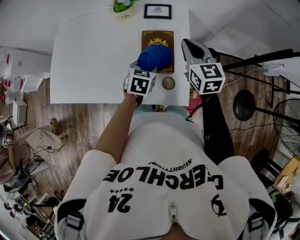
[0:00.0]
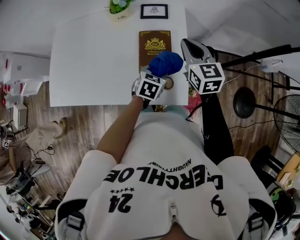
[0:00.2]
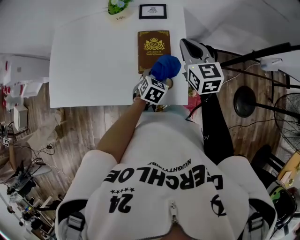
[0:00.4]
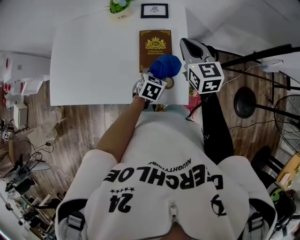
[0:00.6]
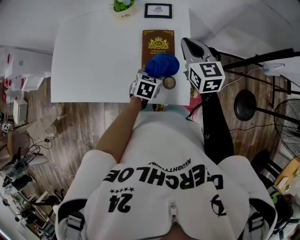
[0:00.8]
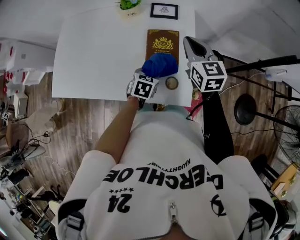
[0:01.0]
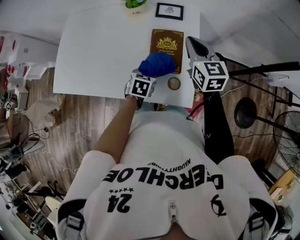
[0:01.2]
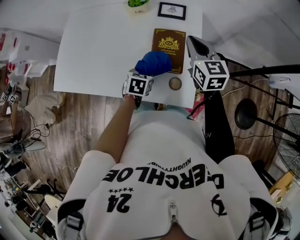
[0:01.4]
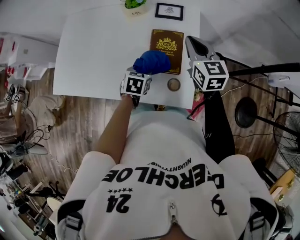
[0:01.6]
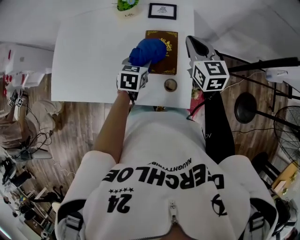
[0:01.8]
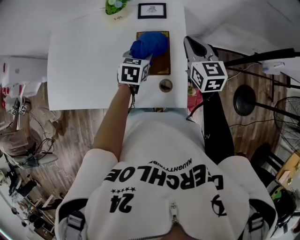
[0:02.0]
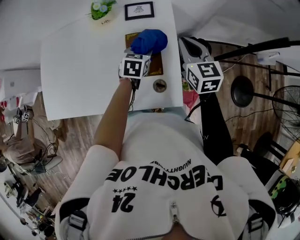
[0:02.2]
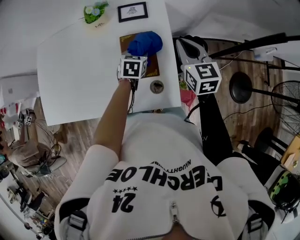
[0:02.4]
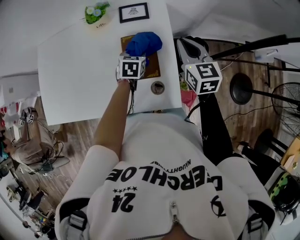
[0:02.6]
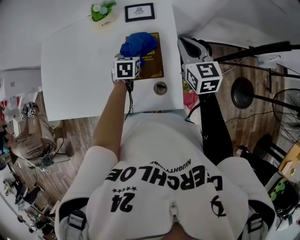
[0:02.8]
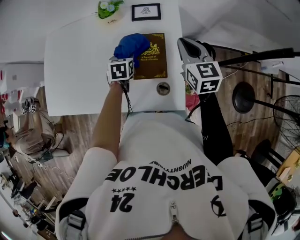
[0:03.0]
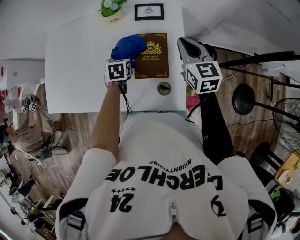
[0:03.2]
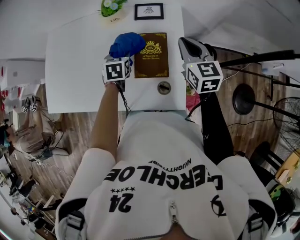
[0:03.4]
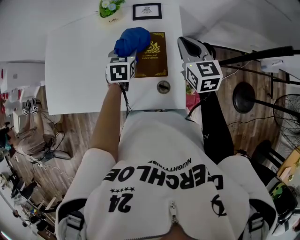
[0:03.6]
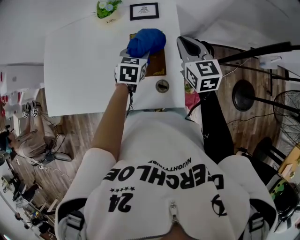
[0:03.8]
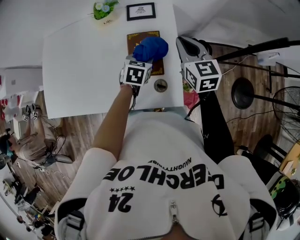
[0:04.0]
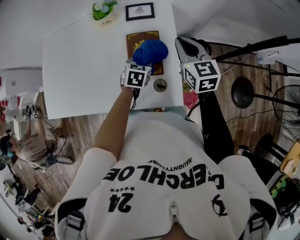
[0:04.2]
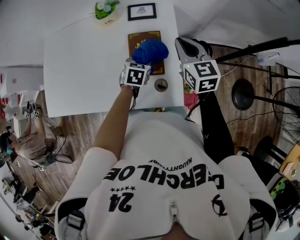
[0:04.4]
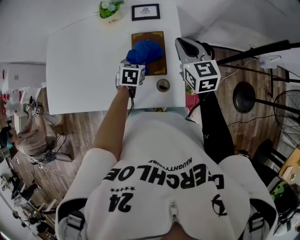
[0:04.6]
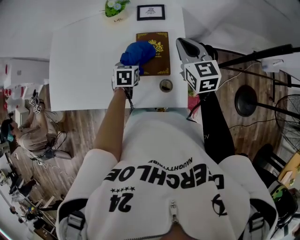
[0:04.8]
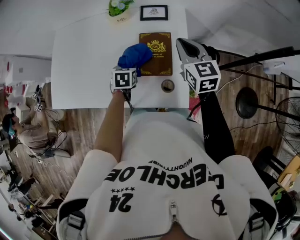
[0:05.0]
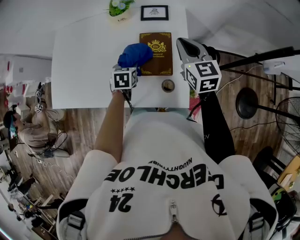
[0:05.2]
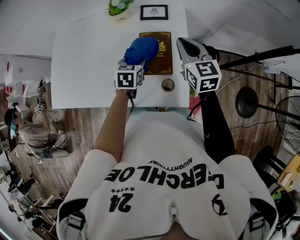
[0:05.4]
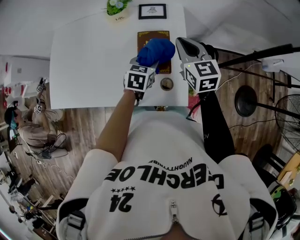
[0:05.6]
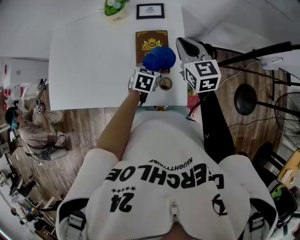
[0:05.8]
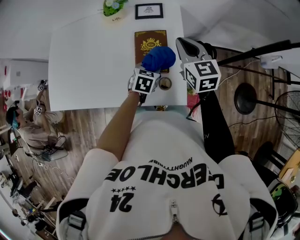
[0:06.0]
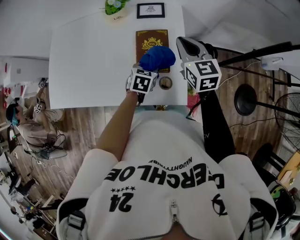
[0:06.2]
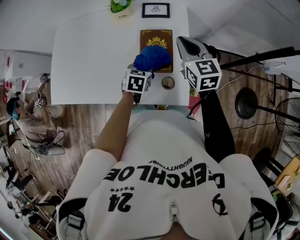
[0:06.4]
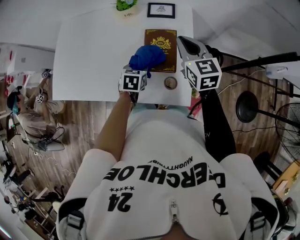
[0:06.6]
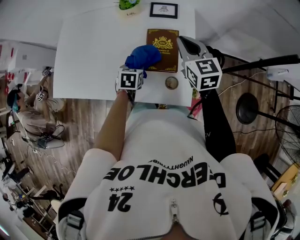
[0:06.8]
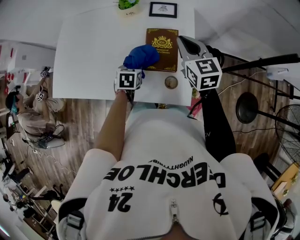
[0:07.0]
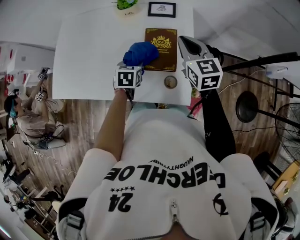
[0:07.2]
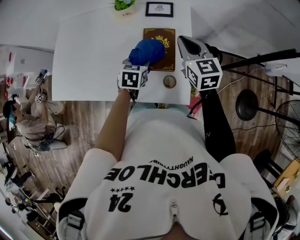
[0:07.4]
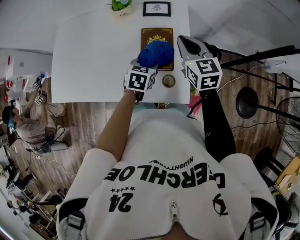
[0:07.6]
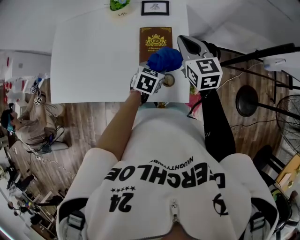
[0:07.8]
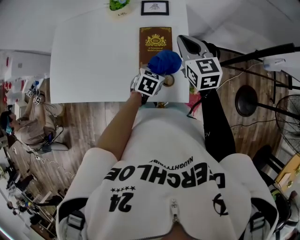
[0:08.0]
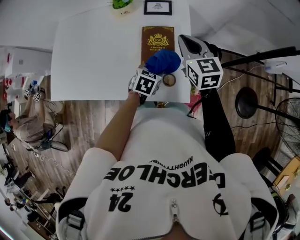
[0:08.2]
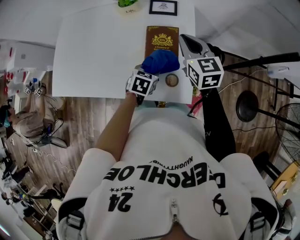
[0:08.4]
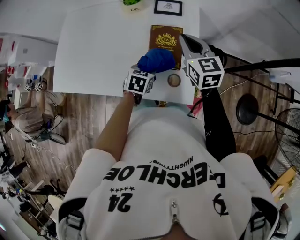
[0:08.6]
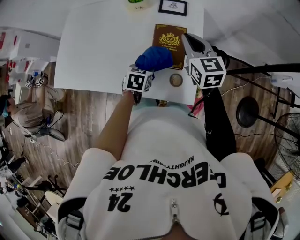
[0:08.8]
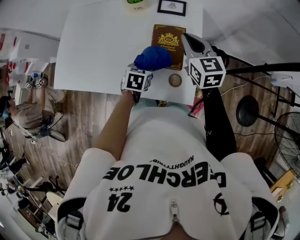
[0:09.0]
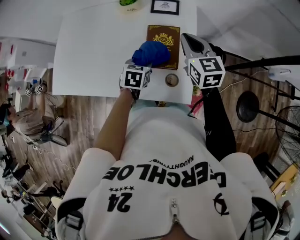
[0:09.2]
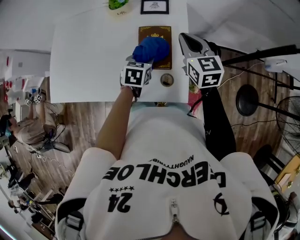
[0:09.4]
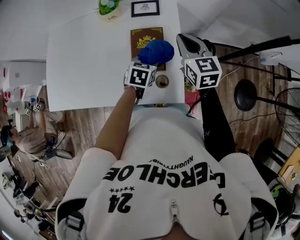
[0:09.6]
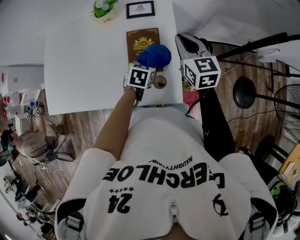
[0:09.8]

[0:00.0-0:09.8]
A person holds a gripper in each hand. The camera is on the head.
0:00.0 to 0:01.4: The left gripper is displaced to the left and downward by some 5 cm.
0:01.4 to 0:02.8: The right gripper goes some 5 cm to the right, while the left gripper shifts roughly 15 cm forward.
0:02.8 to 0:04.2: The left gripper goes approximately 10 cm backward and to the right.
0:04.2 to 0:05.6: The left gripper moves roughly 15 cm to the left and comes back.
0:05.6 to 0:07.0: The left gripper moves to the left and downward, roughly 15 cm.
0:07.0 to 0:08.4: The left gripper travels to the right by approximately 10 cm.
0:08.4 to 0:09.8: The right gripper shifts about 5 cm to the right; the left gripper shifts by roughly 5 cm.

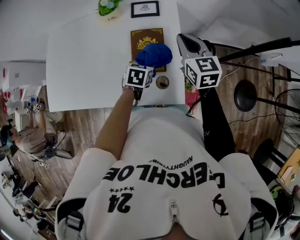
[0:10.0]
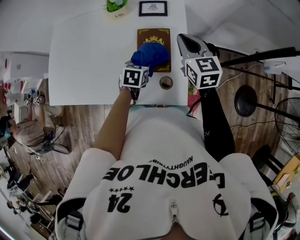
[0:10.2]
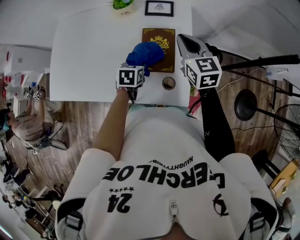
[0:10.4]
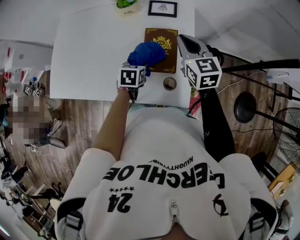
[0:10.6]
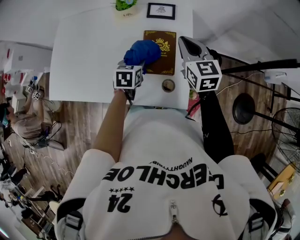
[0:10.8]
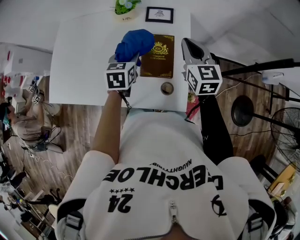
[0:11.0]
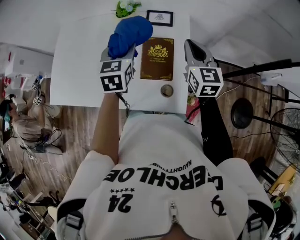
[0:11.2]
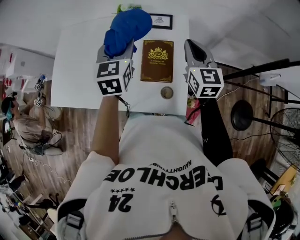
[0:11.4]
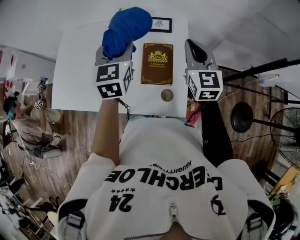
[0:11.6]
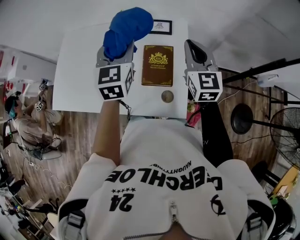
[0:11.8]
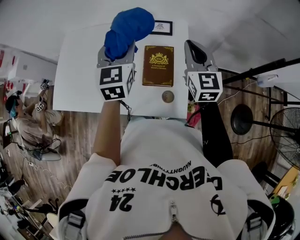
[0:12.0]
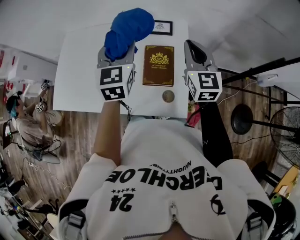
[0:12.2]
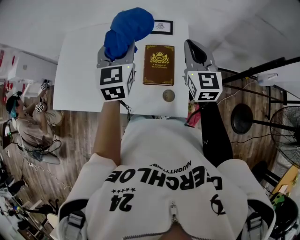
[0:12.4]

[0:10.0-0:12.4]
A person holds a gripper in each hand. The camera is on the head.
0:10.0 to 0:11.2: The left gripper is displaced upward and to the left by roughly 20 cm, and swivels approximately 30 degrees.
0:11.2 to 0:12.4: The right gripper shifts some 5 cm upward; the left gripper goes roughly 10 cm upward.

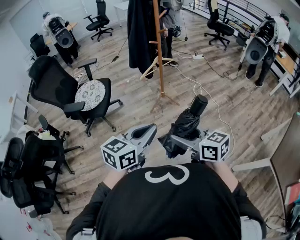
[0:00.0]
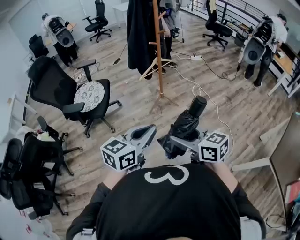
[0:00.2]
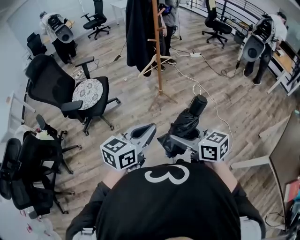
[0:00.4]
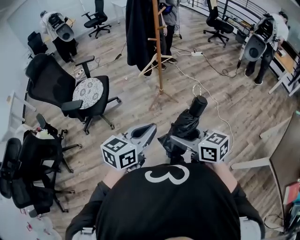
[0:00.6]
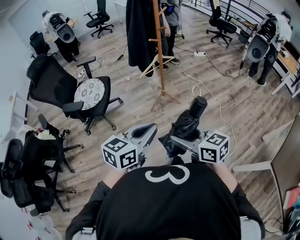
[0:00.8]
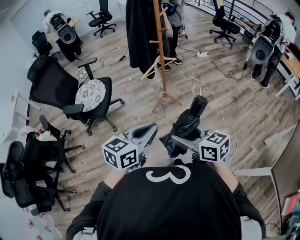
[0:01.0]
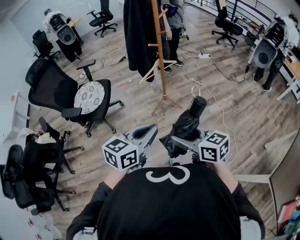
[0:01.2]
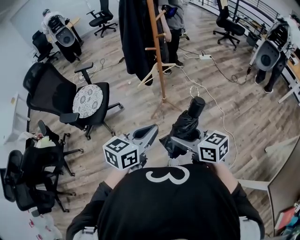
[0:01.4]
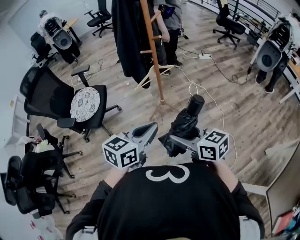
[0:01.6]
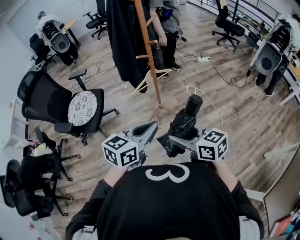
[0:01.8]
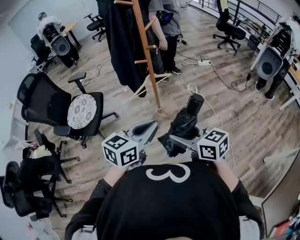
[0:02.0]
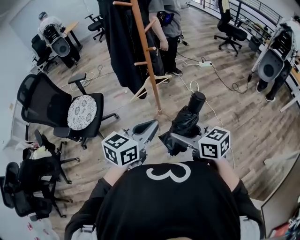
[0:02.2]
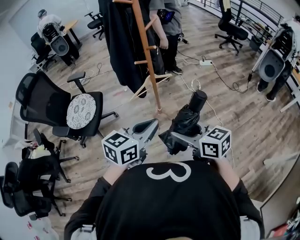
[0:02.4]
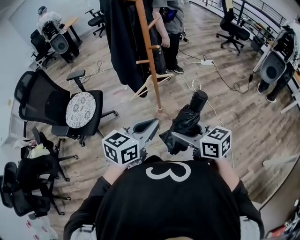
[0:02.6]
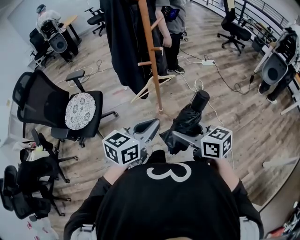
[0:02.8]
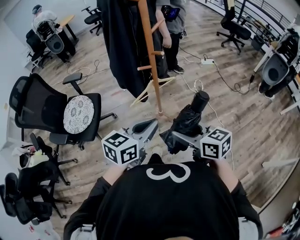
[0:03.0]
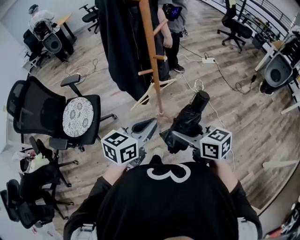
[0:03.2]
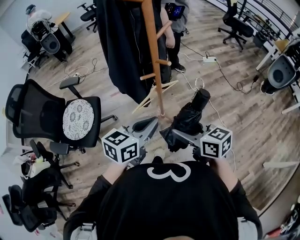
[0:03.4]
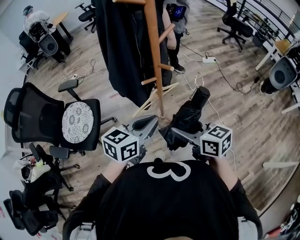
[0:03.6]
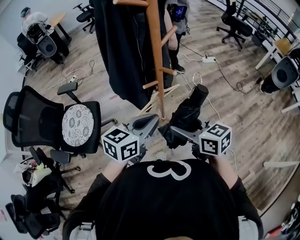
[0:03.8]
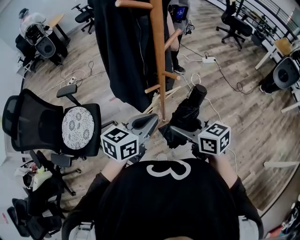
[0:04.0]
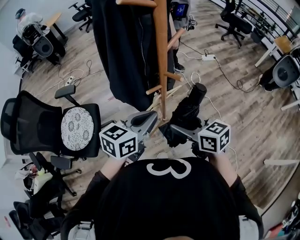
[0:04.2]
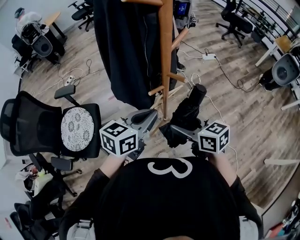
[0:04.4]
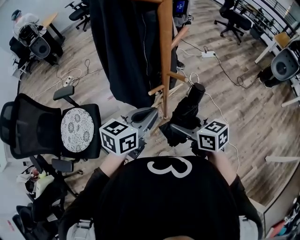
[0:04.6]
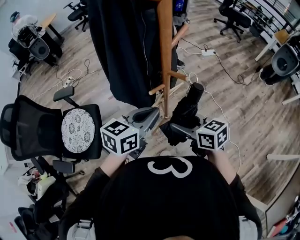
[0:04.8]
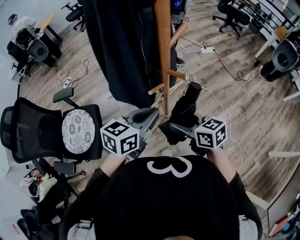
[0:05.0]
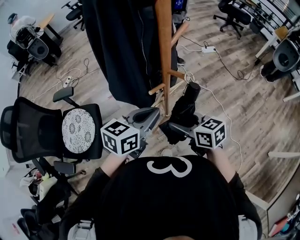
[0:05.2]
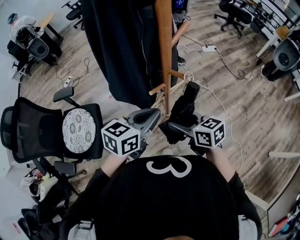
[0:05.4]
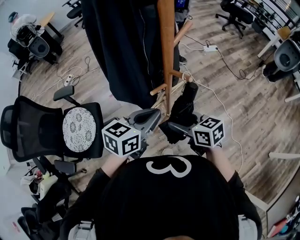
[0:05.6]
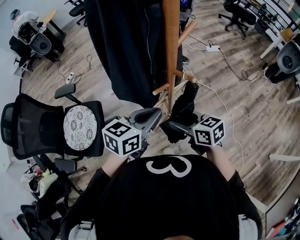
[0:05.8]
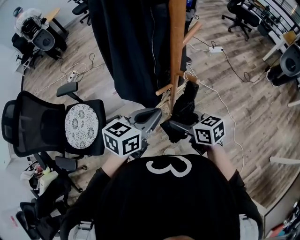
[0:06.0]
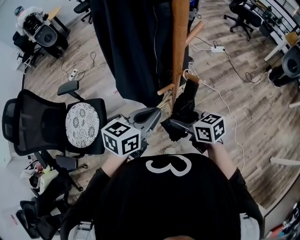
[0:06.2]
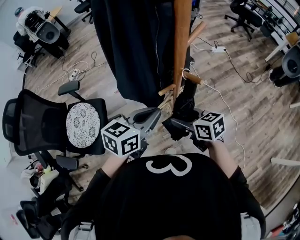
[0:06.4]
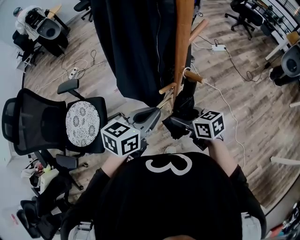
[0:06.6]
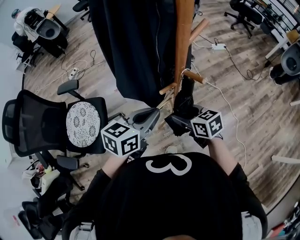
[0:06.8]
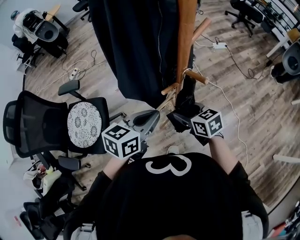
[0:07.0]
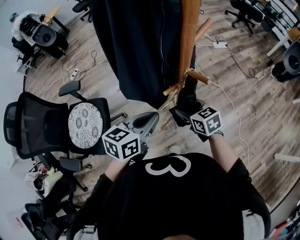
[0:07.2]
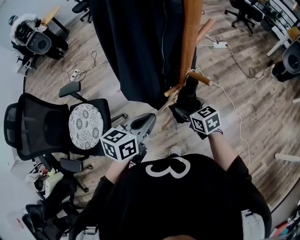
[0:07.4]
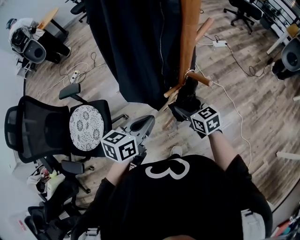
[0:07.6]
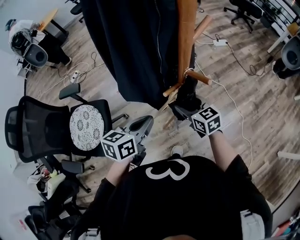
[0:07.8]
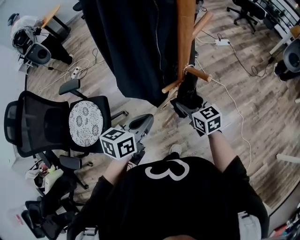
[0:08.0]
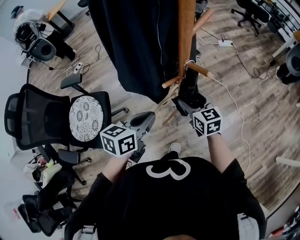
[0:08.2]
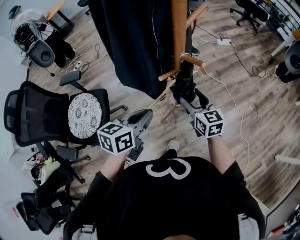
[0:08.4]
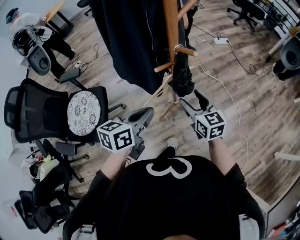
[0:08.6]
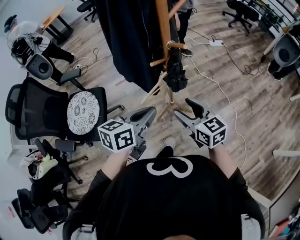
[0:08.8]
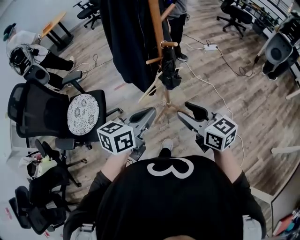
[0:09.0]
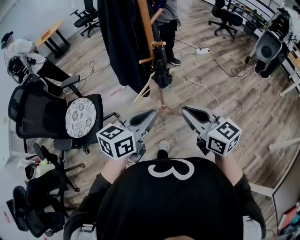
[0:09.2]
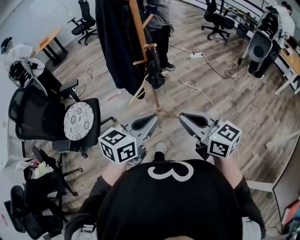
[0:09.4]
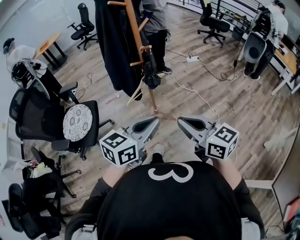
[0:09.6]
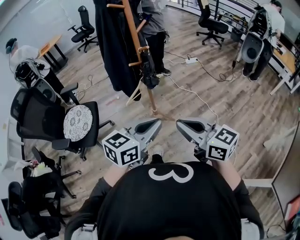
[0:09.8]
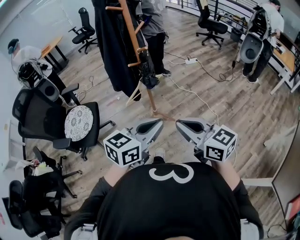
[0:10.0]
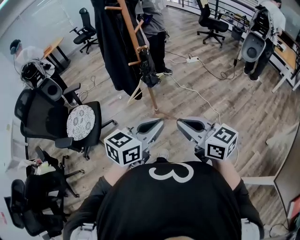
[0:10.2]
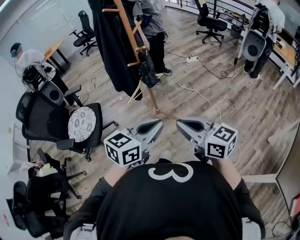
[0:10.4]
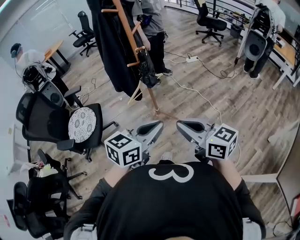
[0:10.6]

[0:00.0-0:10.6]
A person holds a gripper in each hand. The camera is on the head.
0:00.0 to 0:01.6: Both grippers move forward and to the right, approximately 25 cm.
0:01.6 to 0:03.0: Both grippers move forward, roughly 20 cm.
0:03.0 to 0:04.6: Both grippers move forward, roughly 20 cm.
0:04.6 to 0:06.0: The right gripper shifts approximately 5 cm downward.
0:06.0 to 0:07.6: The right gripper shifts about 10 cm forward and downward; the left gripper goes approximately 10 cm to the left and downward.
0:07.6 to 0:09.0: The right gripper is displaced backward and upward by approximately 30 cm. Meanwhile the left gripper travels backward, to the right and upward by about 20 cm.
0:09.0 to 0:10.6: The right gripper goes about 25 cm backward, and closes its fingers; the left gripper heads backward and to the right, covering roughly 25 cm.

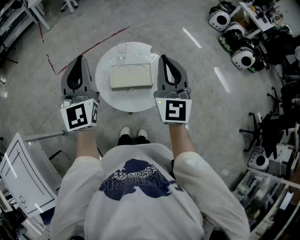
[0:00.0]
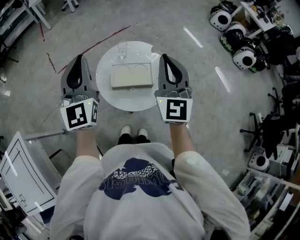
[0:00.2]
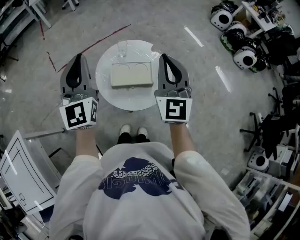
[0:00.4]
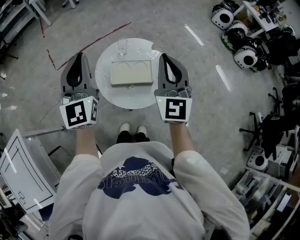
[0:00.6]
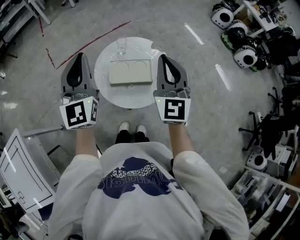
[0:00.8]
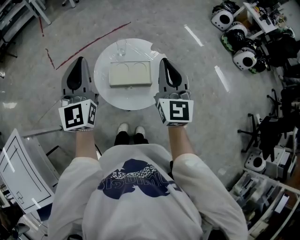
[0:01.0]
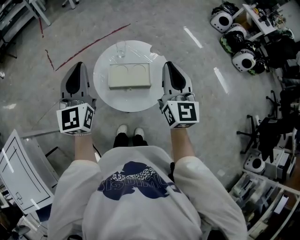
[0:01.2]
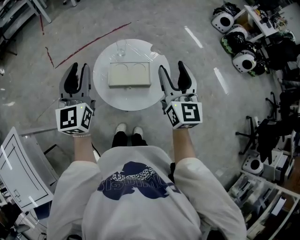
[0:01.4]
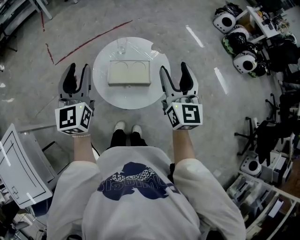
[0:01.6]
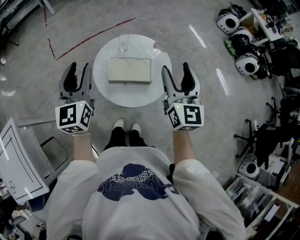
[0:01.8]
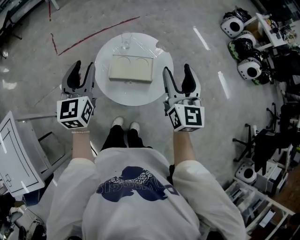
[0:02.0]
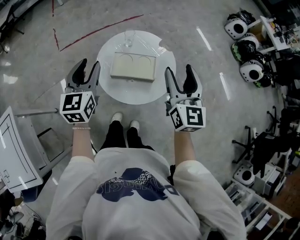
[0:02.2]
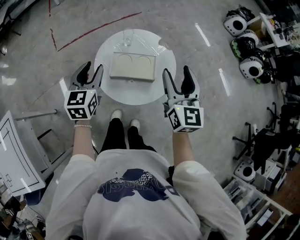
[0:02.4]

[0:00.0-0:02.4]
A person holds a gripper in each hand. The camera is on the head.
0:00.0 to 0:01.2: The right gripper changes place by some 5 cm.
0:01.2 to 0:02.4: The left gripper is displaced downward by roughly 15 cm, swivels roughly 30 degrees, and opens; the right gripper goes roughly 5 cm downward, and opens up.
